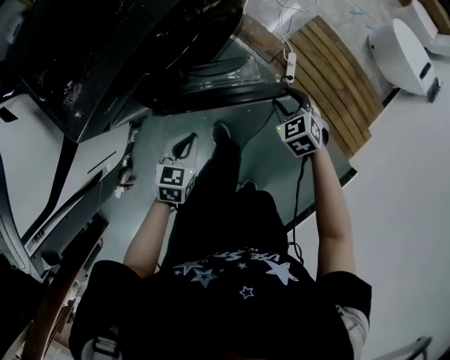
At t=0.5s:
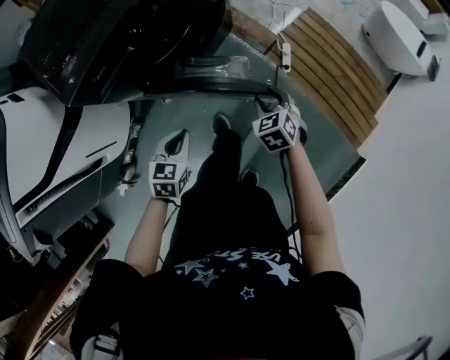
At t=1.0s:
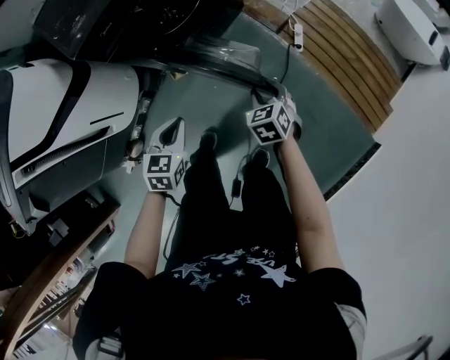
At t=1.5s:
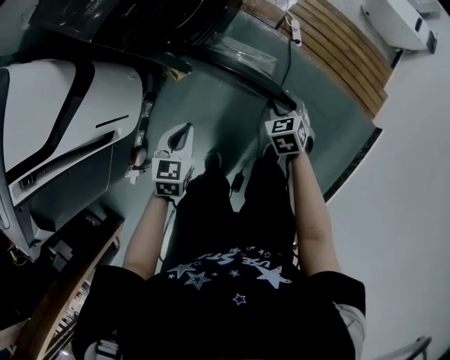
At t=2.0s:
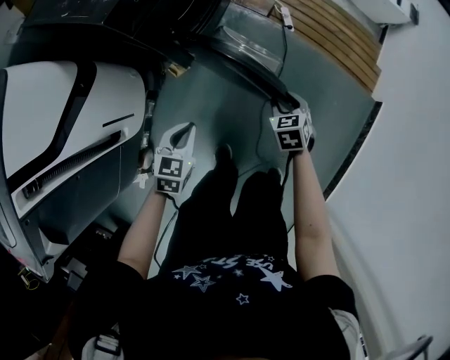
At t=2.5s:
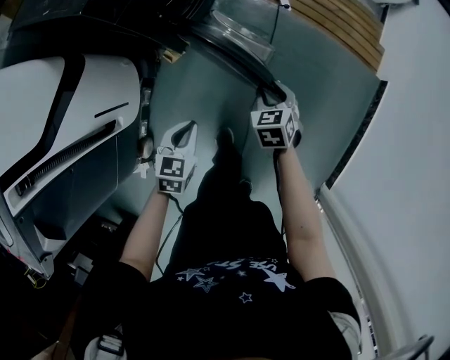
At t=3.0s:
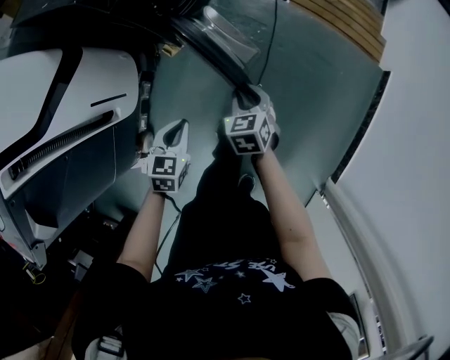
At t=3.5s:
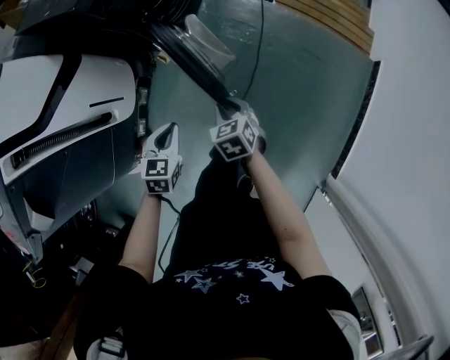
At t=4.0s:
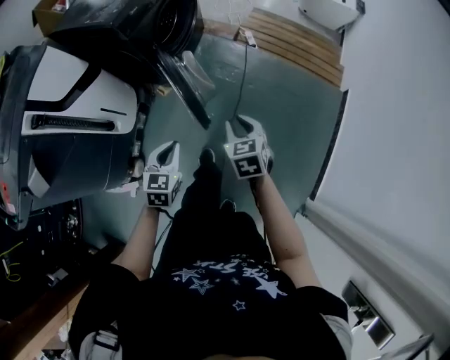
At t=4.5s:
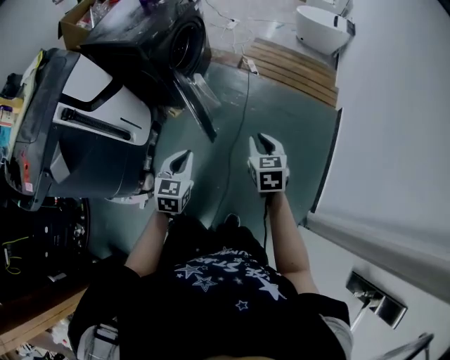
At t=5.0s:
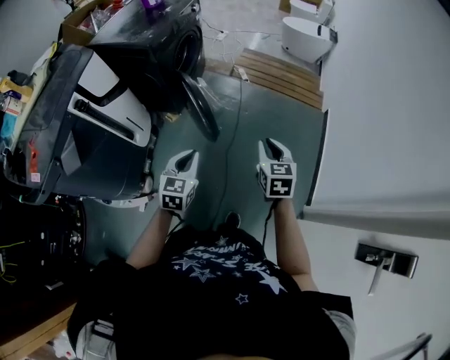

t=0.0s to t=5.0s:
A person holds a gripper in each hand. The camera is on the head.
t=0.0s to t=2.5s: The left gripper moves some 35 cm, and swivels roughly 20 degrees; the right gripper moves approximately 40 cm, and changes its angle by some 40 degrees.
t=2.5s to t=5.0s: Both grippers travel together backward and upward, some 40 cm. The left gripper changes its angle by about 20 degrees; the right gripper rotates roughly 30 degrees.

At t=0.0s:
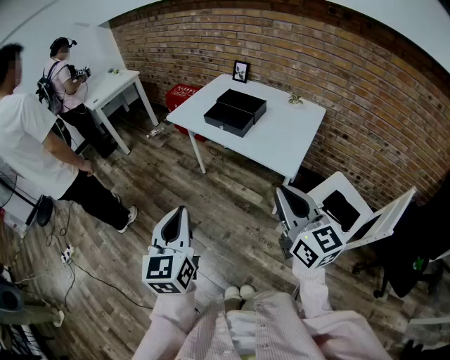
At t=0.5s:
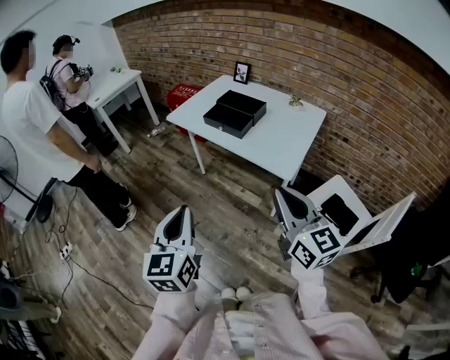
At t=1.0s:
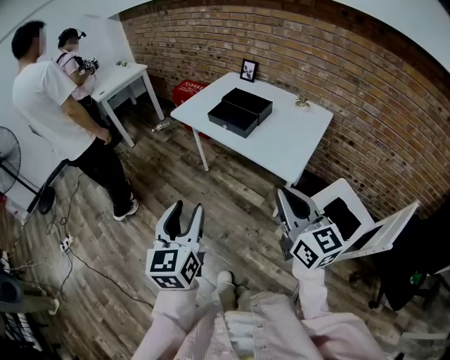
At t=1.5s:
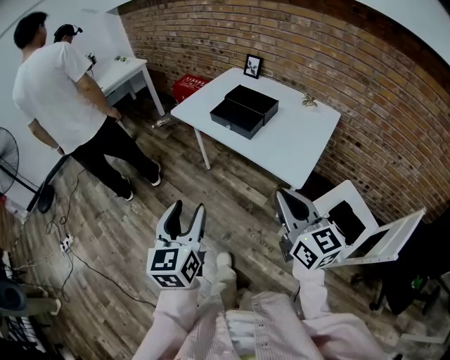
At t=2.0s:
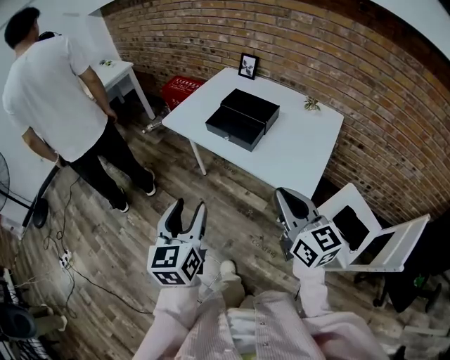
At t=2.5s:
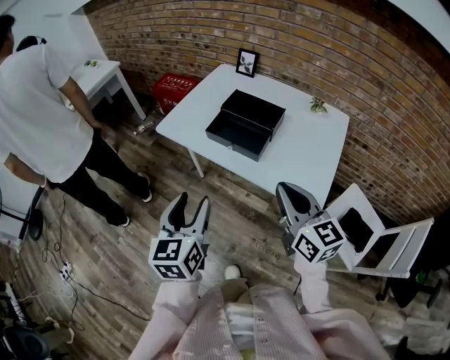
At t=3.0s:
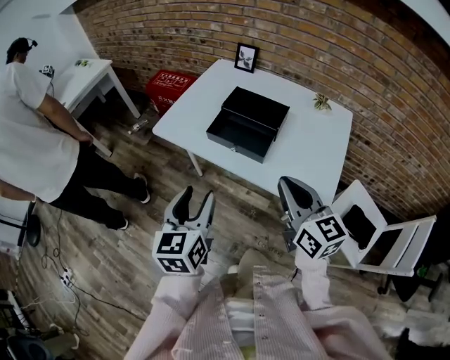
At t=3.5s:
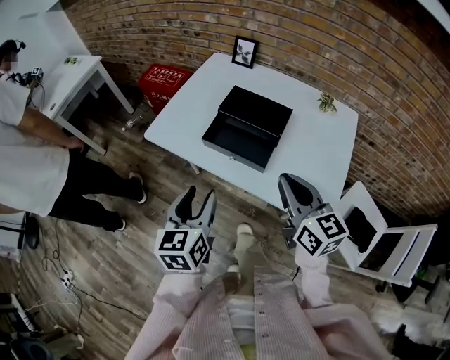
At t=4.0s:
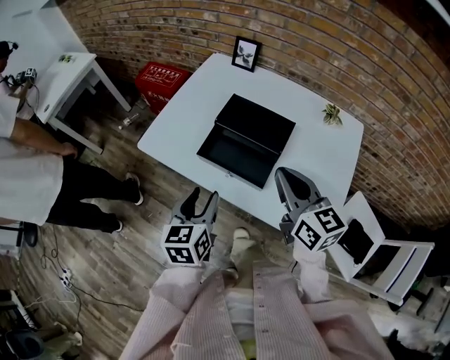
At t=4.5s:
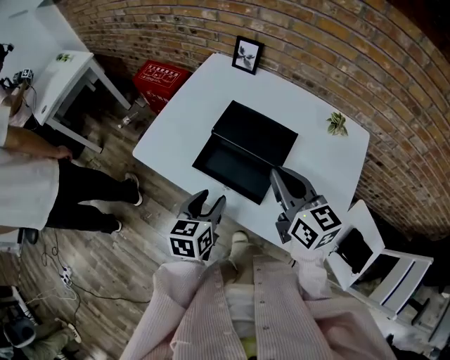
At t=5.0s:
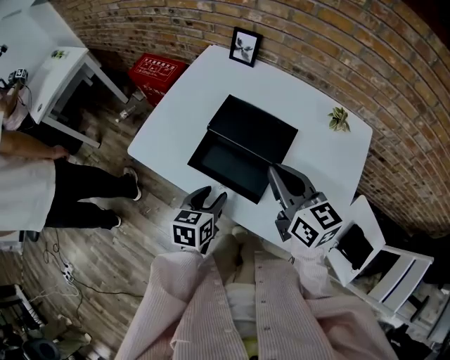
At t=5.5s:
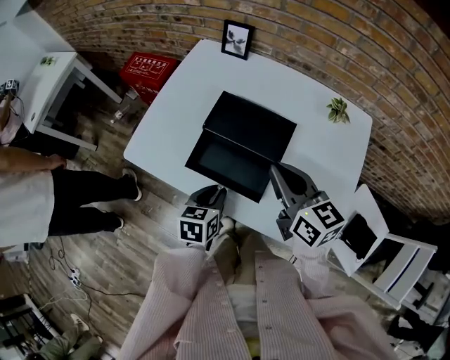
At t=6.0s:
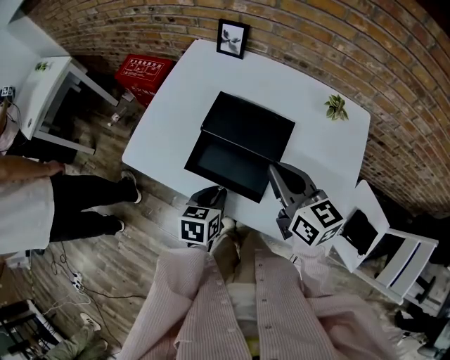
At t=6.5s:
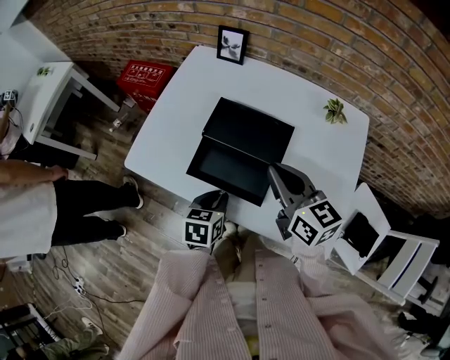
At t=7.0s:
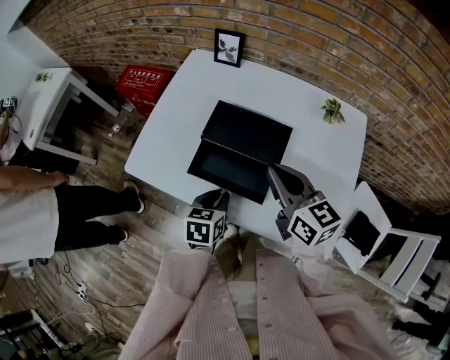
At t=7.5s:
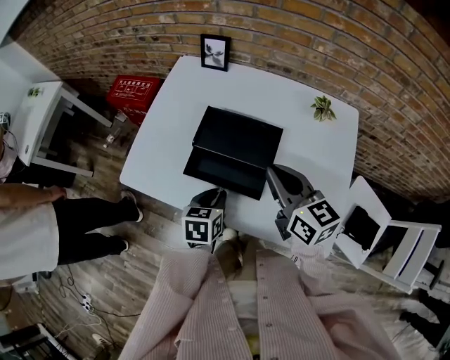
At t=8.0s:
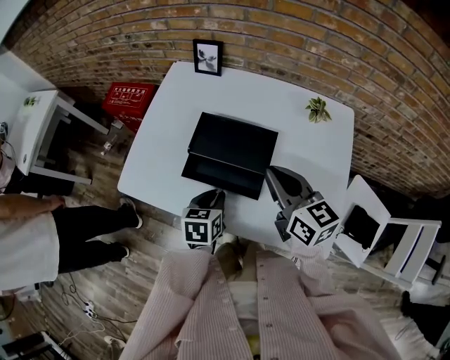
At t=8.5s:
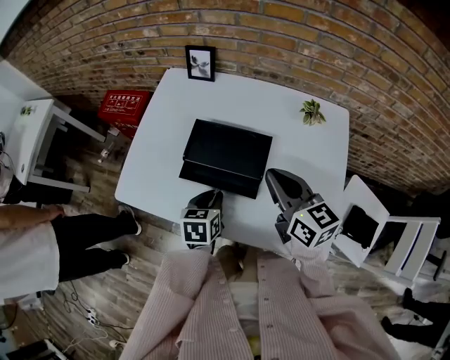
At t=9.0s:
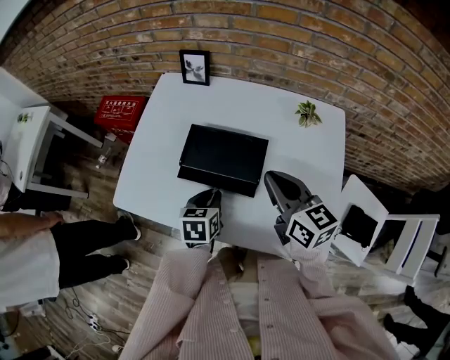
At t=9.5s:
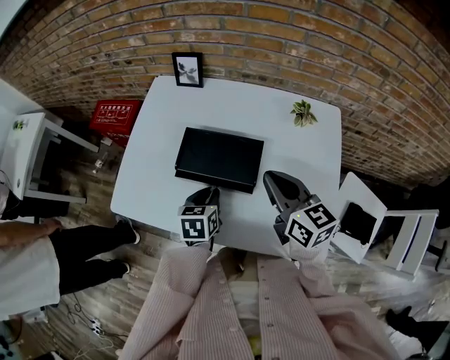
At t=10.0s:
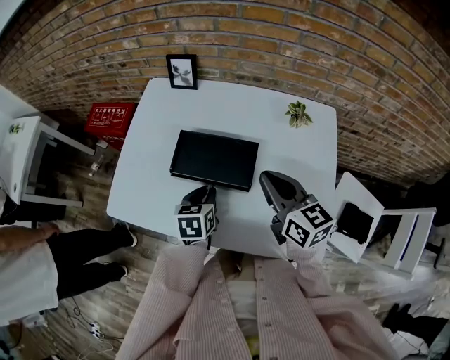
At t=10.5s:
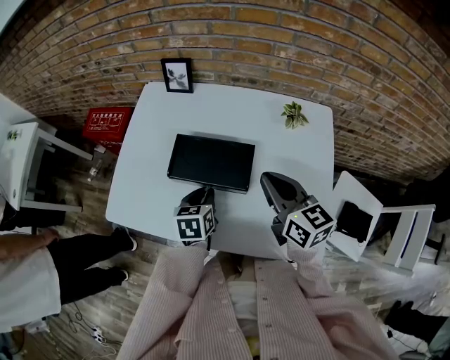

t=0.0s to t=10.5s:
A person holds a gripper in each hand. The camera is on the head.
t=0.0s to t=2.0s: The grippers both shift forward by some 20 cm. The left gripper opens.
t=2.0s to t=4.0s: The left gripper is displaced forward and downward by roughly 30 cm, while the right gripper travels forward by roughly 30 cm.
t=4.0s to t=6.5s: The right gripper moves forward, approximately 10 cm, while the left gripper shifts some 15 cm downward, forward and to the right, changes its angle by roughly 30 degrees, and closes.
t=6.5s to t=8.5s: The left gripper shifts approximately 5 cm forward.
t=8.5s to t=10.5s: The left gripper changes place by roughly 5 cm.

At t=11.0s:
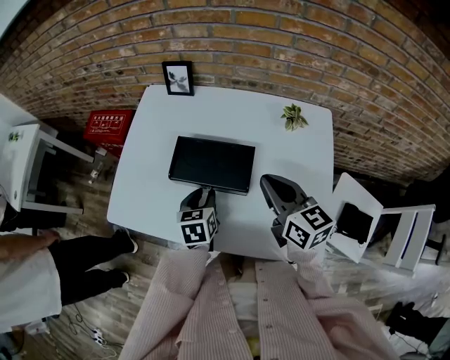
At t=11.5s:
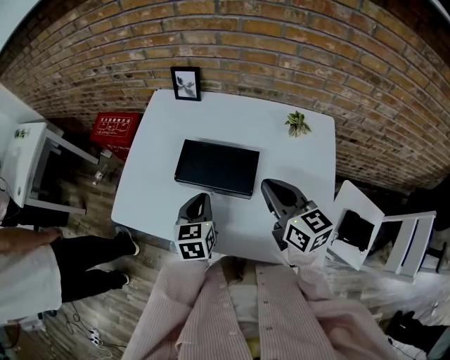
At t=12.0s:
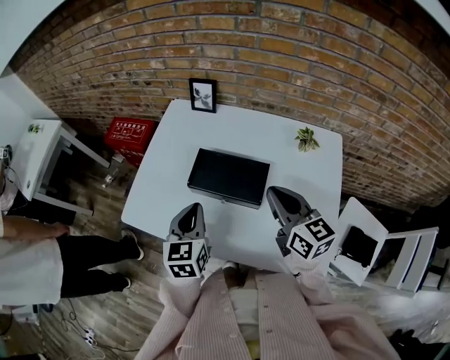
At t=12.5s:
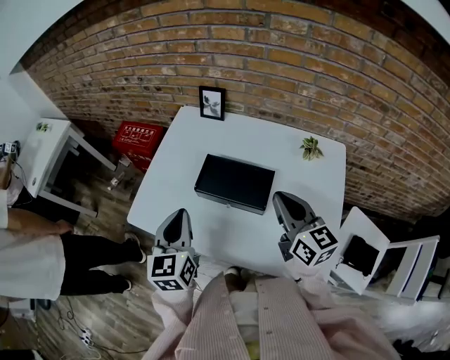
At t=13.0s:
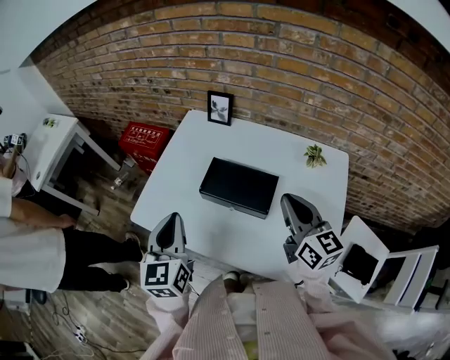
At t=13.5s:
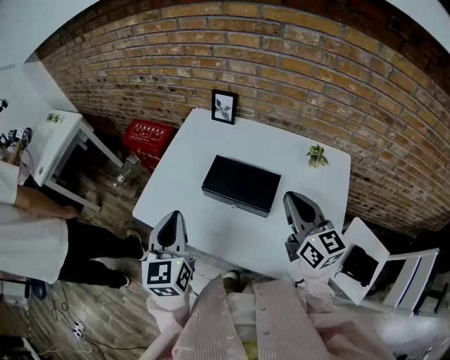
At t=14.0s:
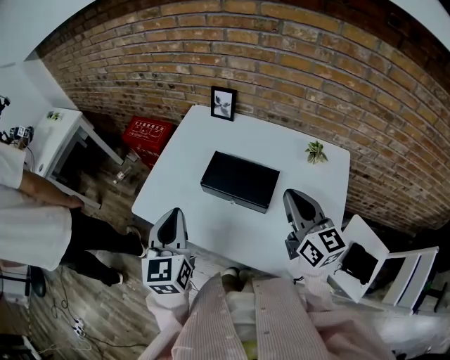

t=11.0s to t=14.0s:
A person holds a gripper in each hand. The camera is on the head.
t=11.0s to t=12.5s: The left gripper travels upward and to the left by some 20 cm, swivels roughly 30 degrees, and closes its fingers.
t=12.5s to t=14.0s: The left gripper shifts by roughly 5 cm.

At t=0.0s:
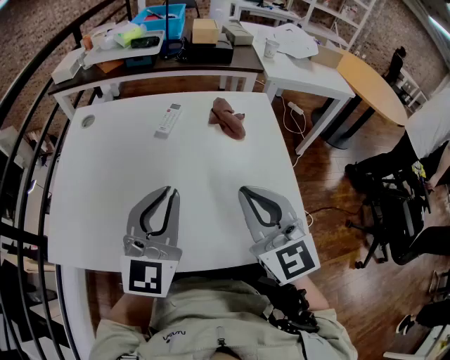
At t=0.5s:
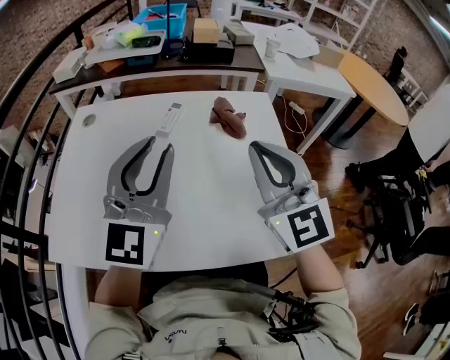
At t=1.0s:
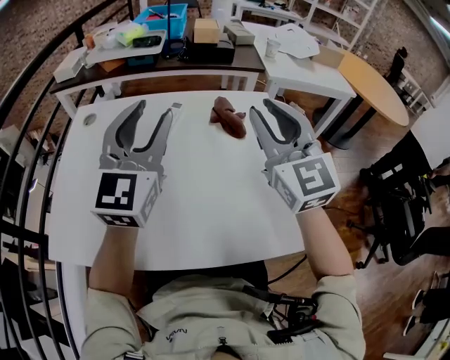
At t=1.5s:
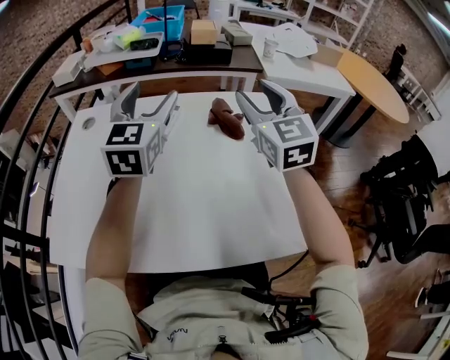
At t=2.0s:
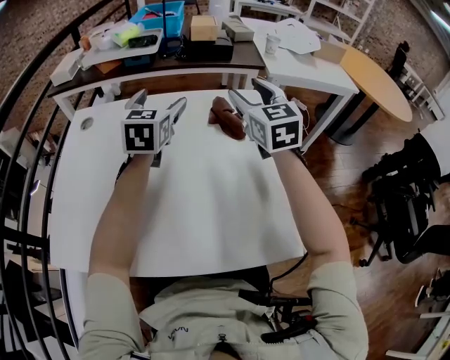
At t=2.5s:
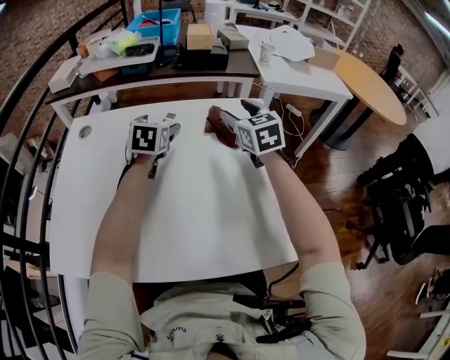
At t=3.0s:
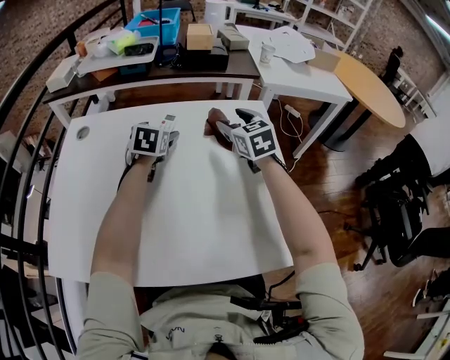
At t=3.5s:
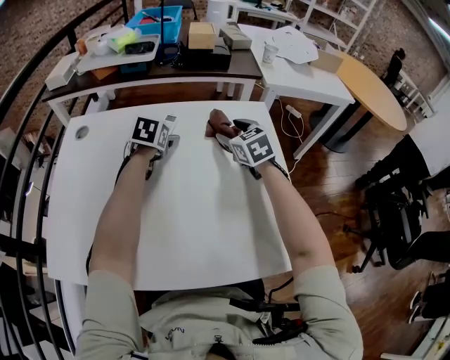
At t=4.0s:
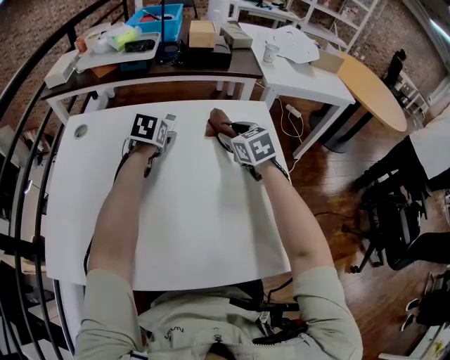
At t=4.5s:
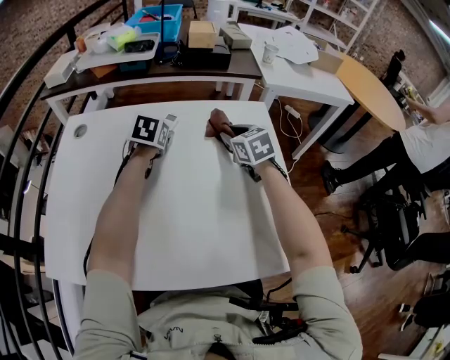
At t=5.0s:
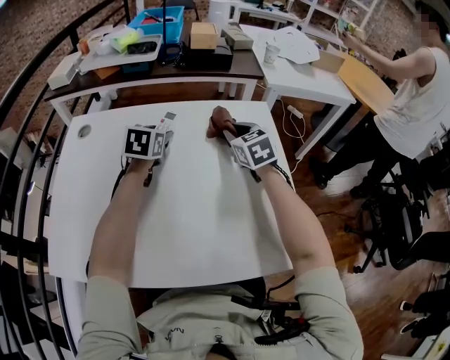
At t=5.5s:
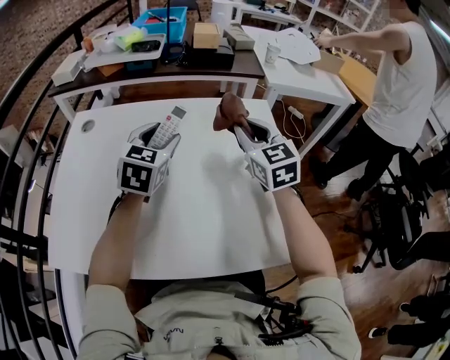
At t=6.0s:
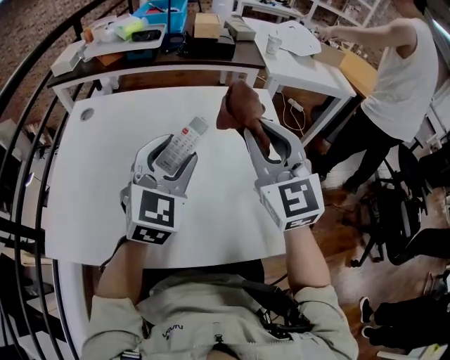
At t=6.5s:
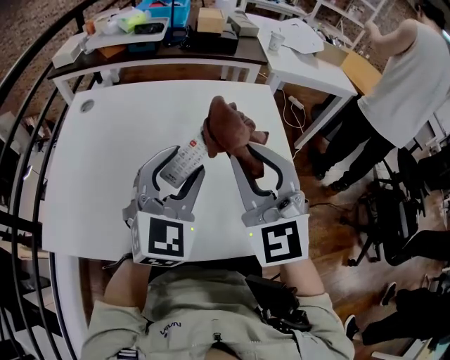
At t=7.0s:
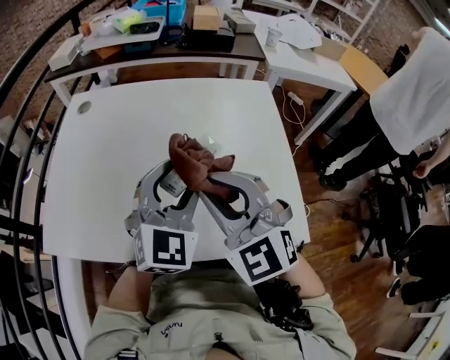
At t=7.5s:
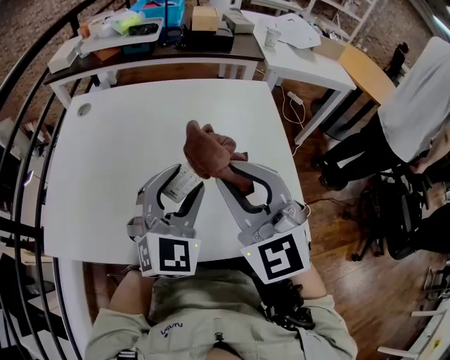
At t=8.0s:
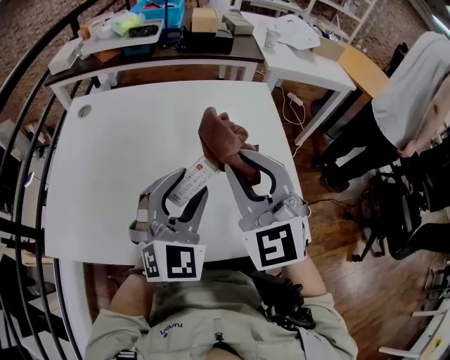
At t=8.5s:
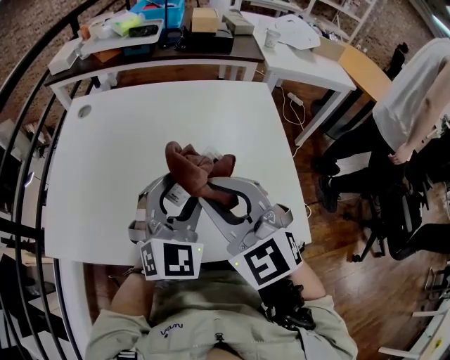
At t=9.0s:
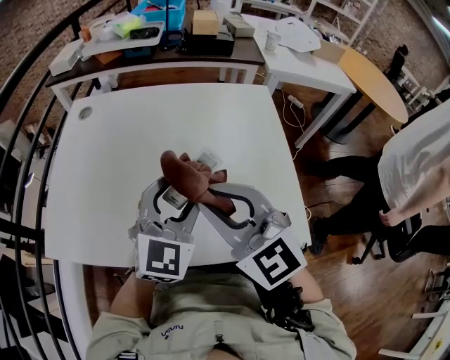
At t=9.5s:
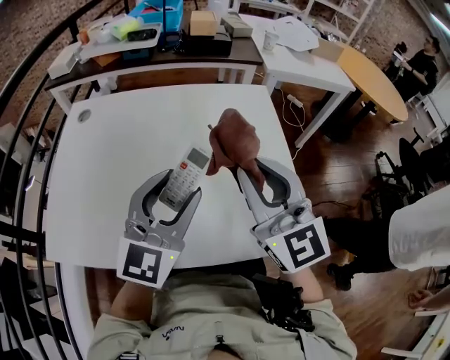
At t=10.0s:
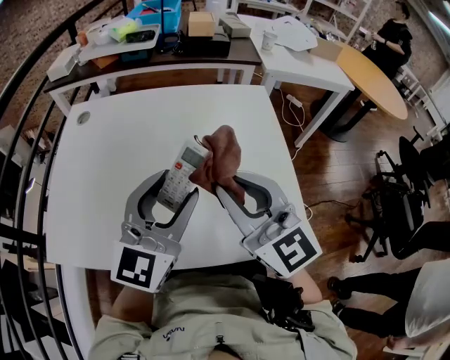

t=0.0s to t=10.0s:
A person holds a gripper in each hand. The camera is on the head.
t=0.0s to t=2.0s: Both grippers travel together forward, about 25 cm. The right gripper opens up. Meanwhile the left gripper opens its fingers.
t=2.0s to t=4.0s: Both grippers move downward, about 15 cm. The left gripper tilts its fingers roughly 30 degrees downward. The right gripper turns by roughly 30 degrees.
t=4.0s to t=6.0s: Both grippers travel together backward and upward, roughly 25 cm. The left gripper angles its fingers upward, by approximately 30 degrees; the right gripper points its fingers approximately 30 degrees further upward, and closes up.
t=6.0s to t=8.0s: The two grippers go some 10 cm backward.
t=8.0s to t=10.0s: The right gripper swings left and right, some 10 cm each way, with 2 reversals, and rotates about 30 degrees; the left gripper goes roughly 5 cm upward, and rotates approximately 30 degrees.
